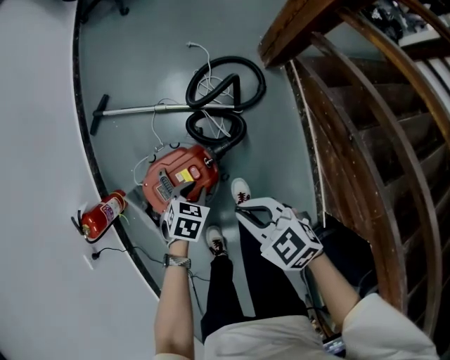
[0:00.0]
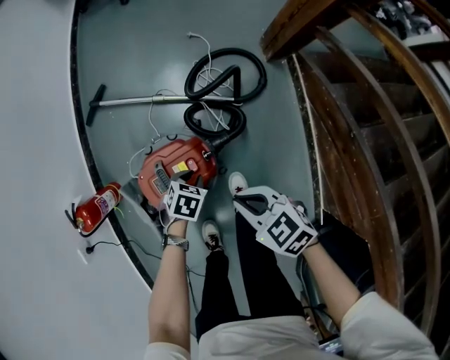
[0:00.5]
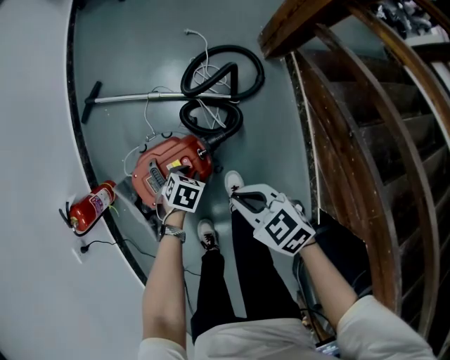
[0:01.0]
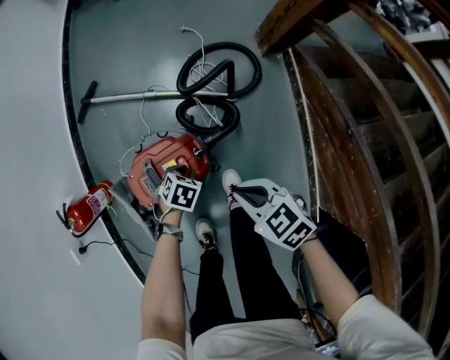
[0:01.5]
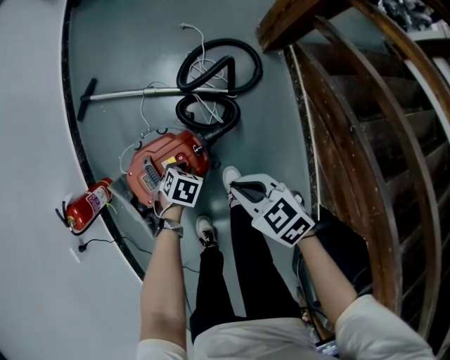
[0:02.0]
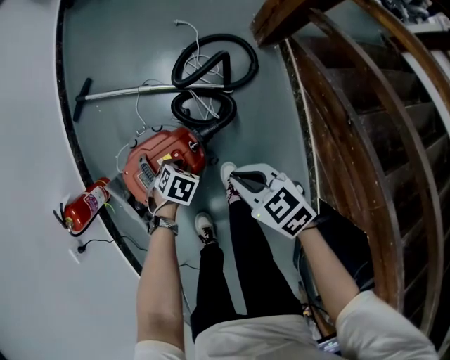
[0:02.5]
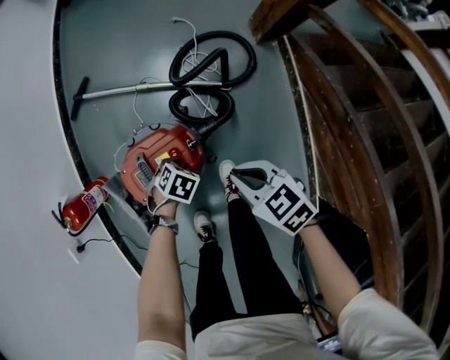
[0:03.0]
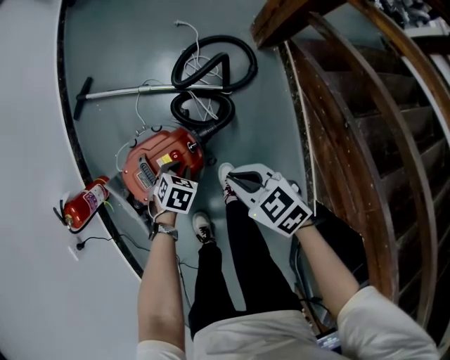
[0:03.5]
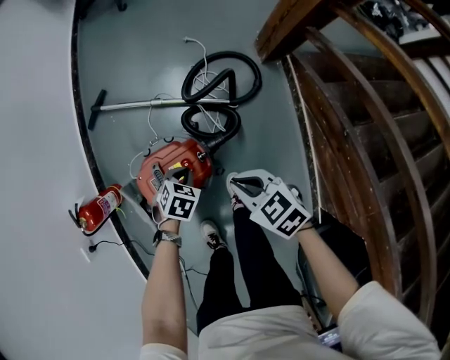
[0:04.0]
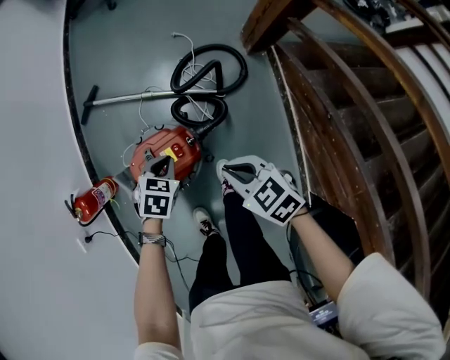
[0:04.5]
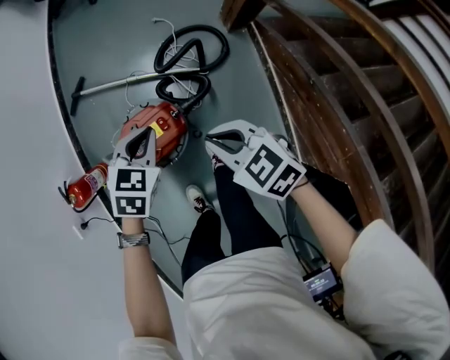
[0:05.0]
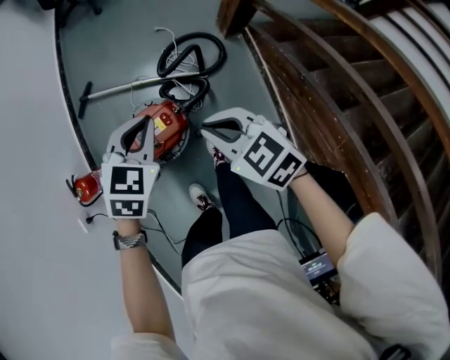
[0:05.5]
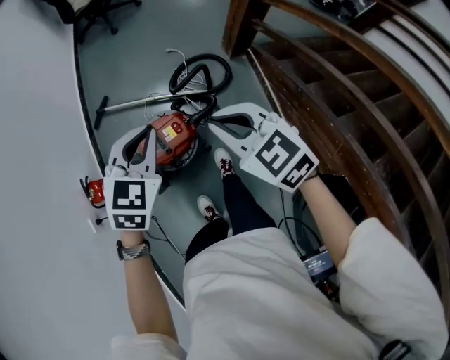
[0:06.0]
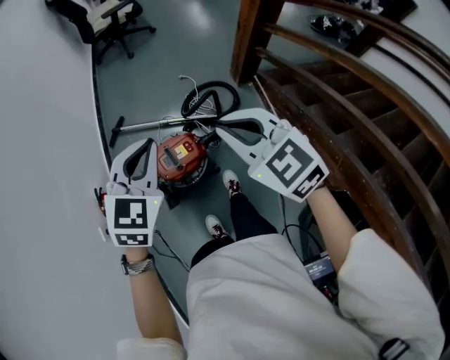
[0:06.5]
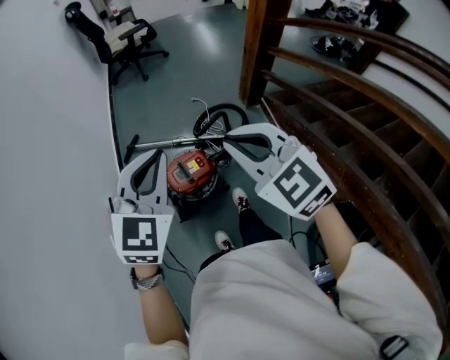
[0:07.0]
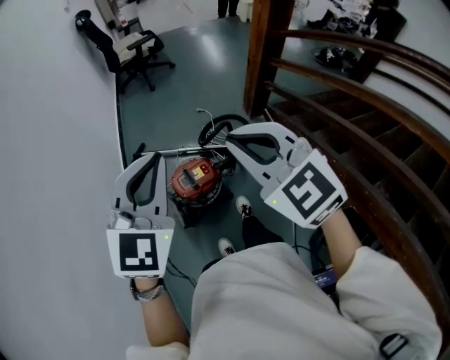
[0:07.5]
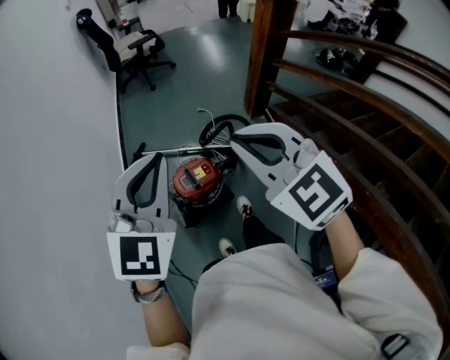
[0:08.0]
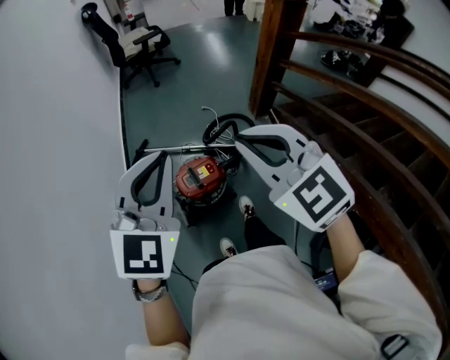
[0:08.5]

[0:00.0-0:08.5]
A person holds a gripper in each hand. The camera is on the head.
0.0 to 2.0 s: Both grippers move downward, approximately 10 cm.
2.0 to 4.0 s: The left gripper travels upward by roughly 10 cm.
4.0 to 6.5 s: Both grippers travel together upward, some 50 cm. The right gripper changes its angle by roughly 40 degrees. Meanwhile the left gripper tilts its fingers approximately 40 degrees upward.
6.5 to 8.5 s: The right gripper travels upward, backward and to the left by about 15 cm. The left gripper goes roughly 15 cm upward and backward.

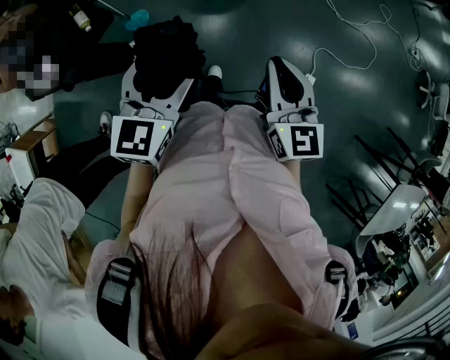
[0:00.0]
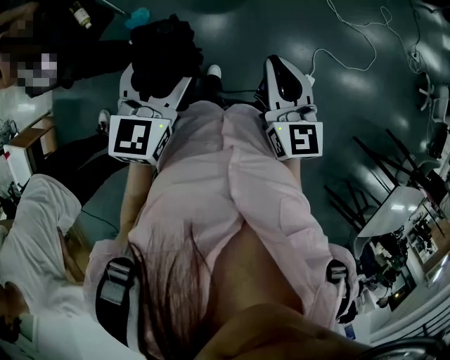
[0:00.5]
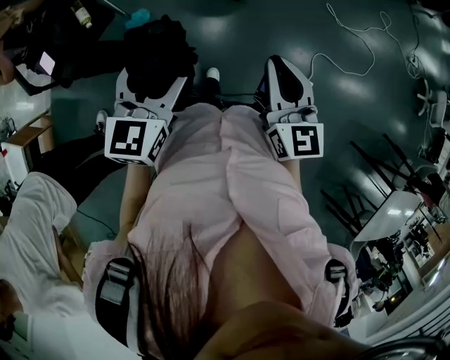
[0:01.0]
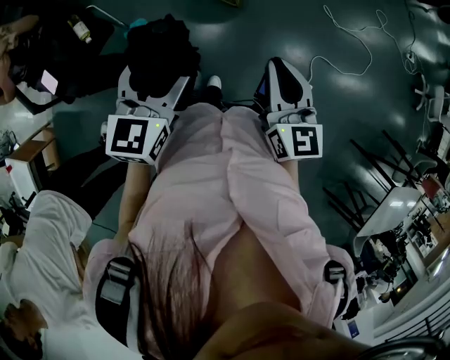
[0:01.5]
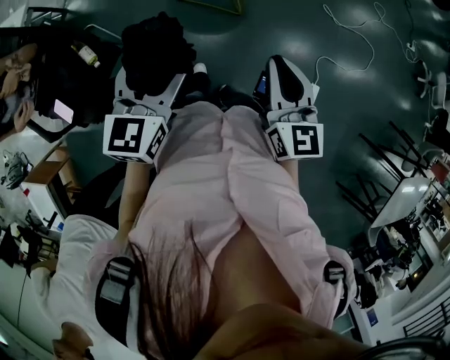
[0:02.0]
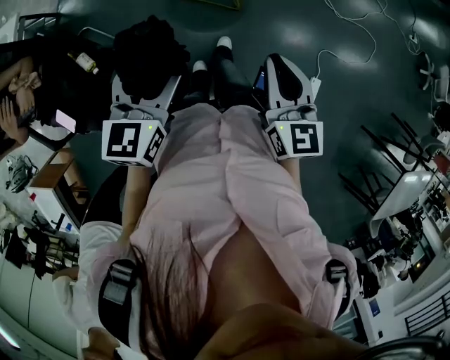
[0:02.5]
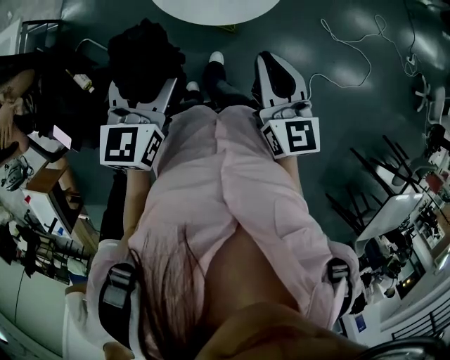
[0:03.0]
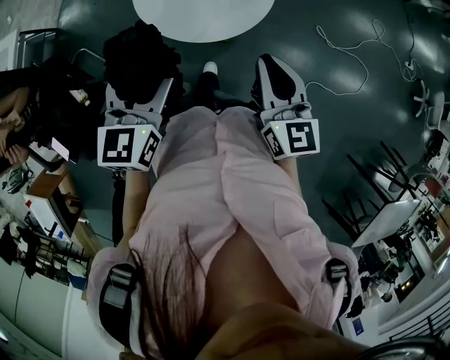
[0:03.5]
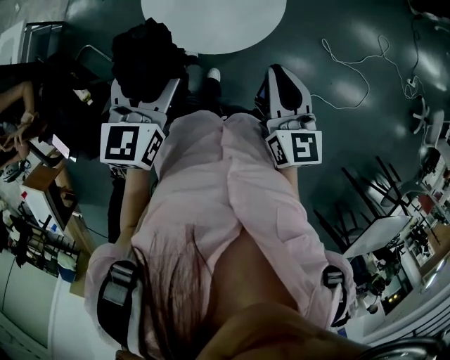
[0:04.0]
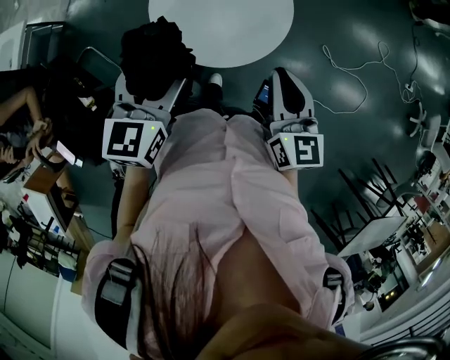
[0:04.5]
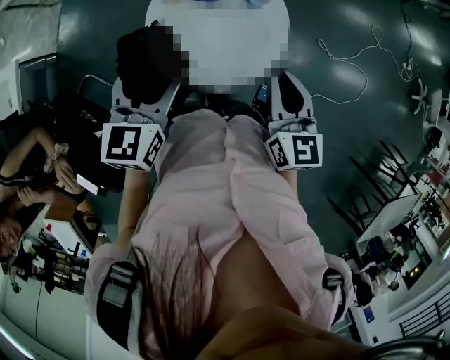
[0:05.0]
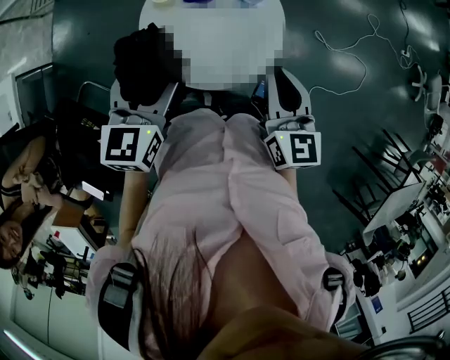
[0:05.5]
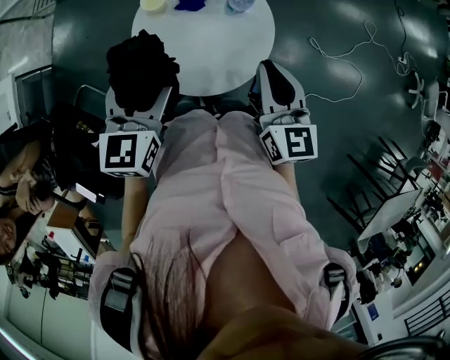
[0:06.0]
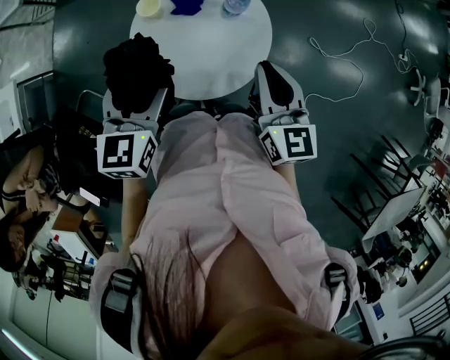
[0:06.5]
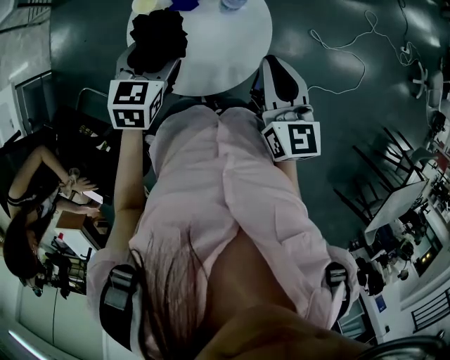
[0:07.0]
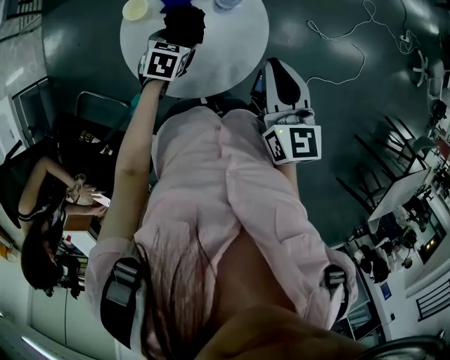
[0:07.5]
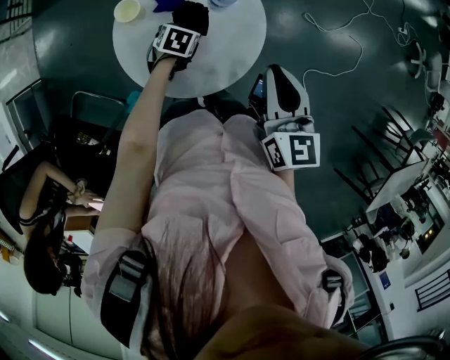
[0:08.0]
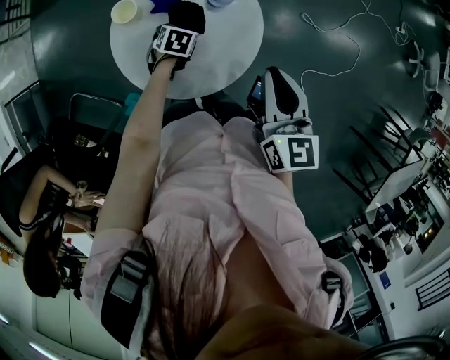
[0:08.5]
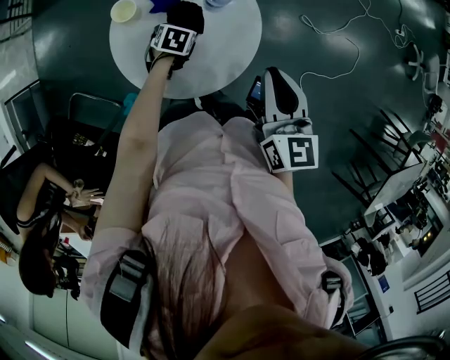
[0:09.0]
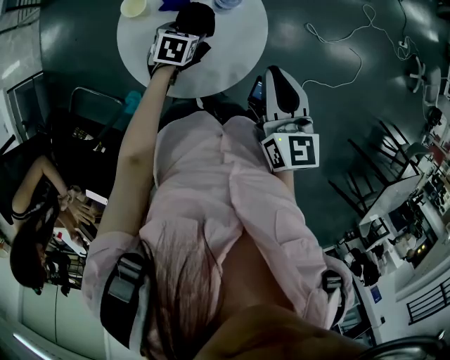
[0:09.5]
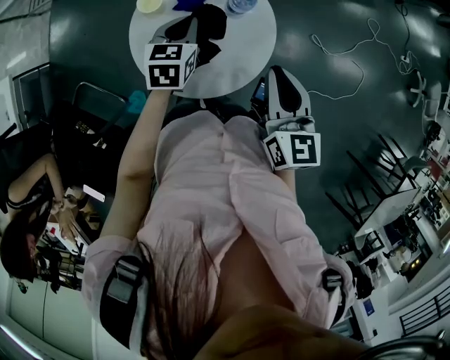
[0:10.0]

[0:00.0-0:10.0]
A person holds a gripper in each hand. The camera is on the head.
0.0 to 2.0 s: Both grippers move forward and to the left, roughly 15 cm.
2.0 to 4.0 s: The two grippers go approximately 25 cm forward.
4.0 to 6.0 s: The two grippers go some 15 cm forward.
6.0 to 8.0 s: The left gripper is displaced downward by roughly 35 cm, and angles its fingers downward, by about 40 degrees.
8.0 to 10.0 s: The left gripper travels upward by about 20 cm, changes its angle by about 40 degrees, and closes up.

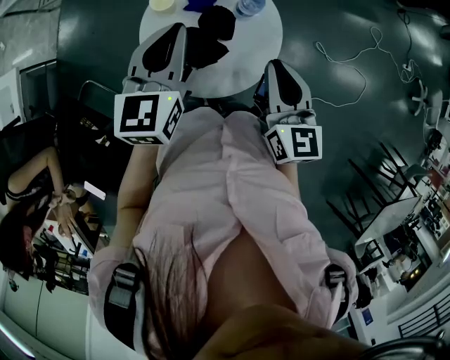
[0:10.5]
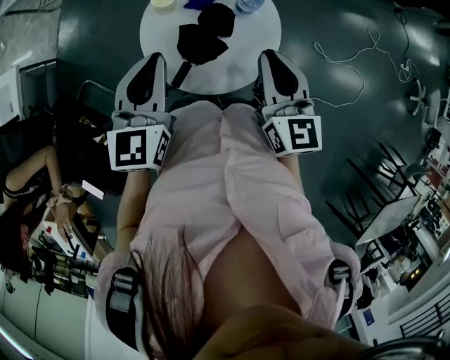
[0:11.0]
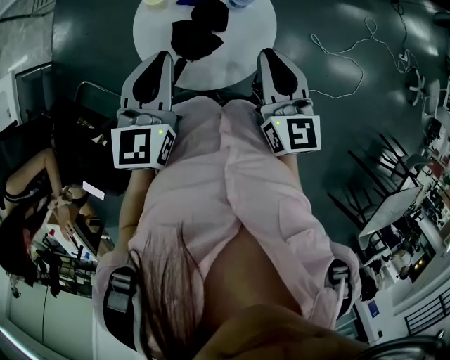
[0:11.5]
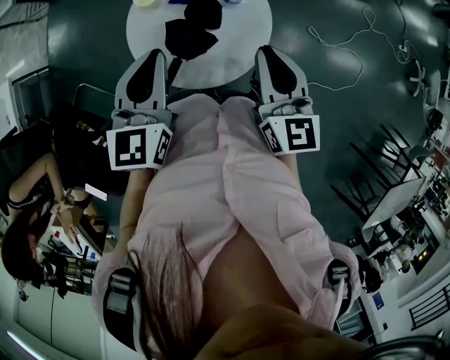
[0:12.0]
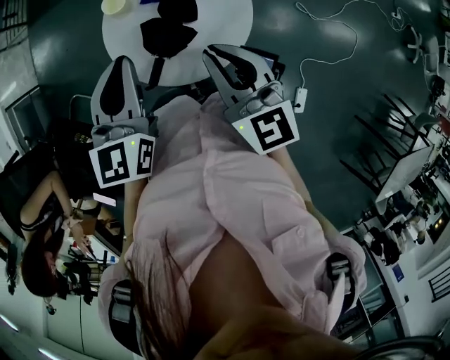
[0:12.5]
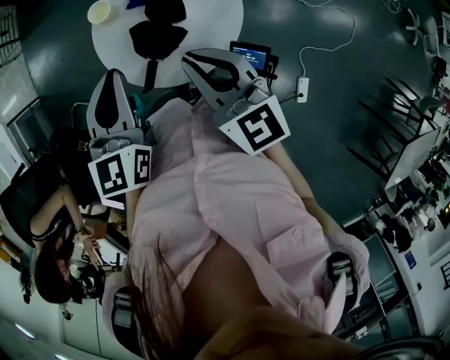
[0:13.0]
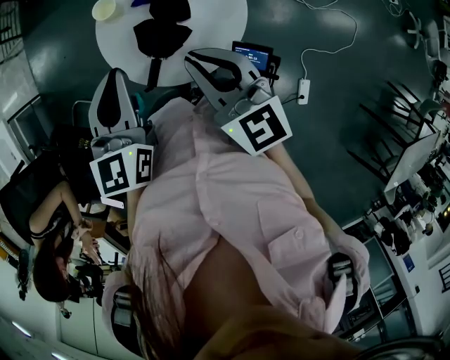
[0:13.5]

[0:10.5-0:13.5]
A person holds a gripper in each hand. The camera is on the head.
10.5 to 12.0 s: The left gripper shifts about 5 cm backward.
12.0 to 13.5 s: The right gripper heads to the left, covering about 10 cm.

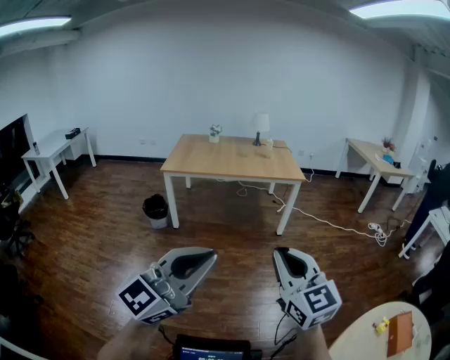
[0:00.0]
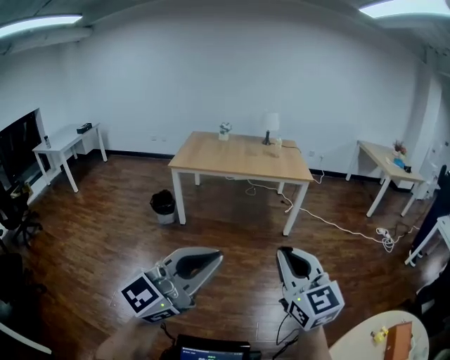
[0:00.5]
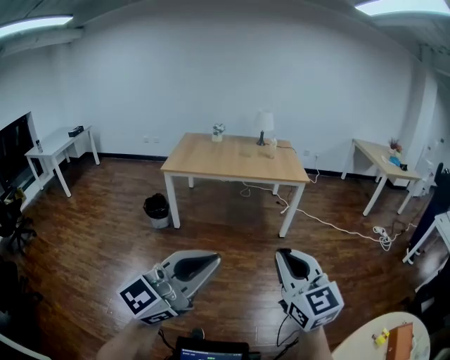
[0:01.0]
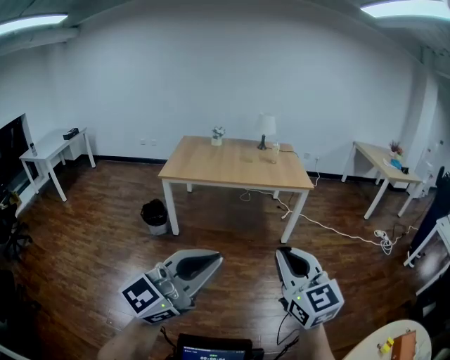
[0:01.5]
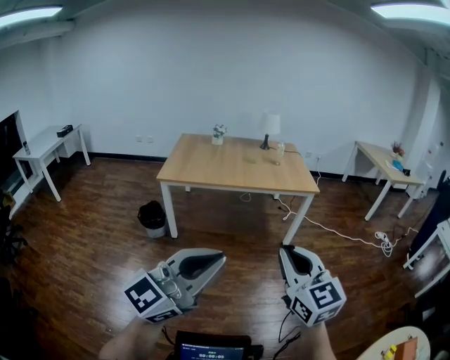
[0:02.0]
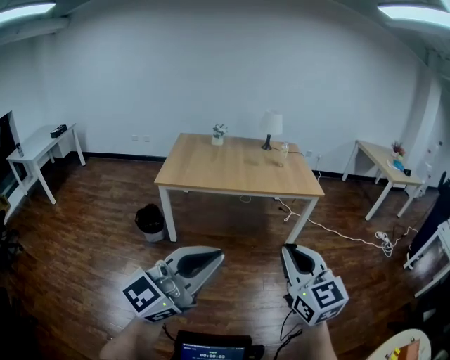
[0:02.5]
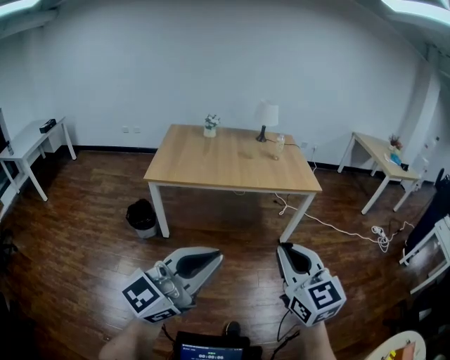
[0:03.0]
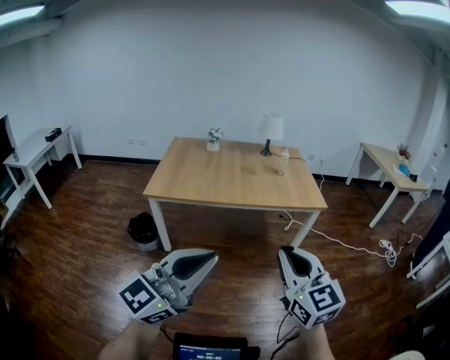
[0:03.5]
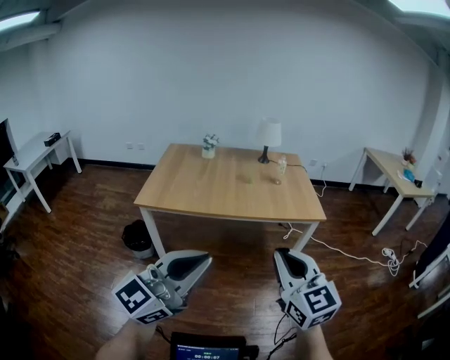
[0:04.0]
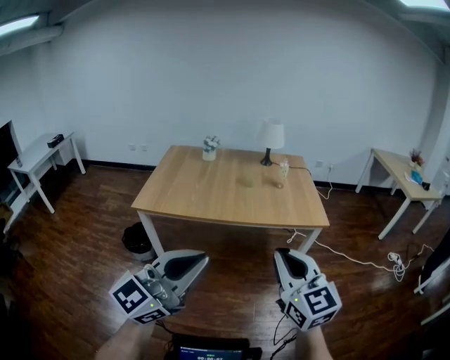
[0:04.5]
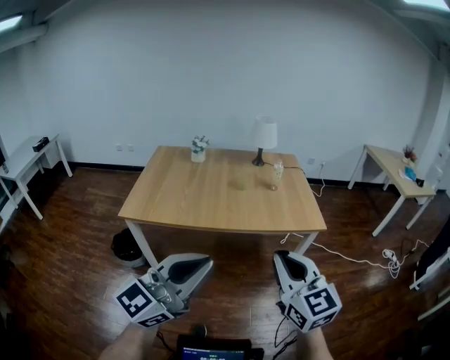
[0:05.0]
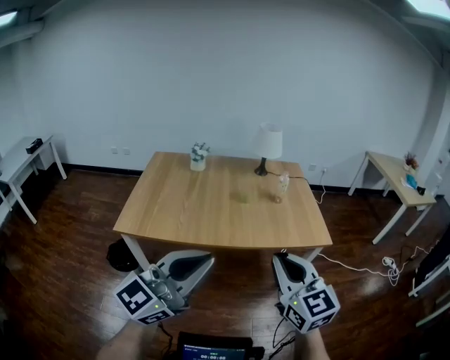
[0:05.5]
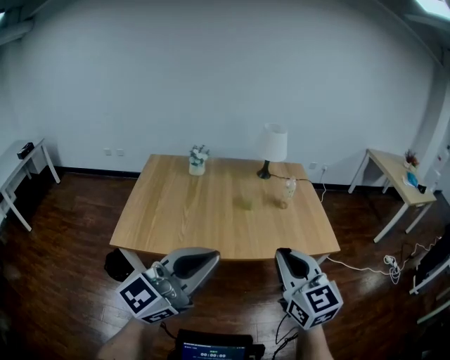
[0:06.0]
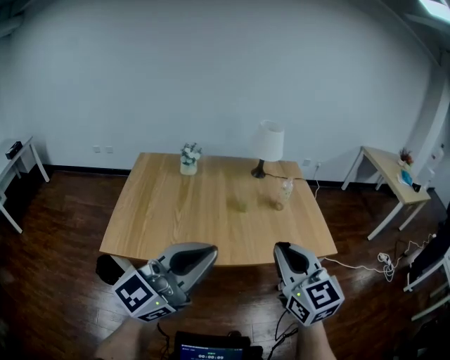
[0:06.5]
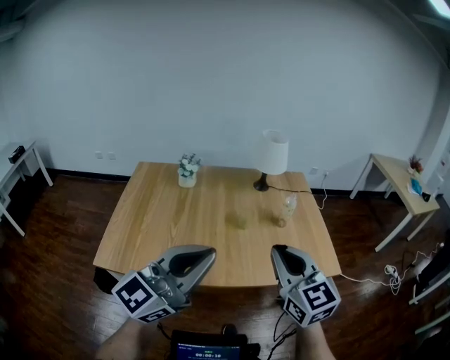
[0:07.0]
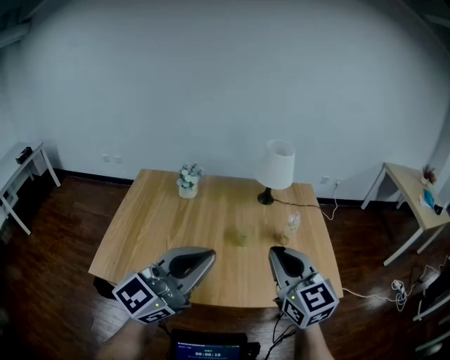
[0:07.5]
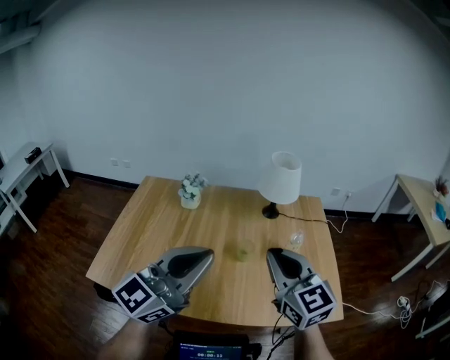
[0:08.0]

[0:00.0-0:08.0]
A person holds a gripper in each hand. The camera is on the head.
0.0 to 2.0 s: The two grippers go some 20 cm forward and to the left.
2.0 to 4.0 s: The two grippers go approximately 25 cm forward.
4.0 to 6.0 s: The two grippers go approximately 30 cm forward.
6.0 to 8.0 s: The two grippers go roughly 30 cm forward.
